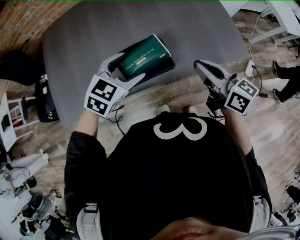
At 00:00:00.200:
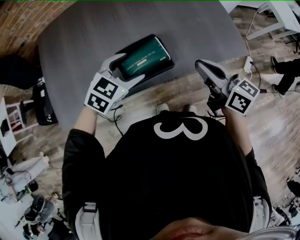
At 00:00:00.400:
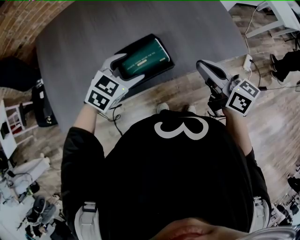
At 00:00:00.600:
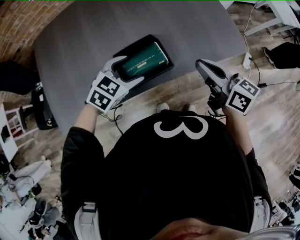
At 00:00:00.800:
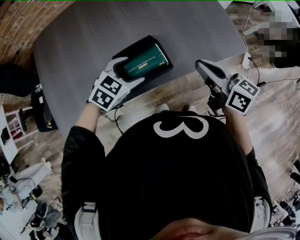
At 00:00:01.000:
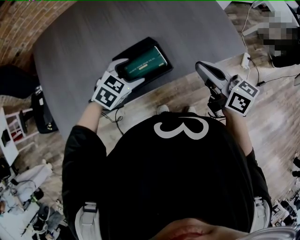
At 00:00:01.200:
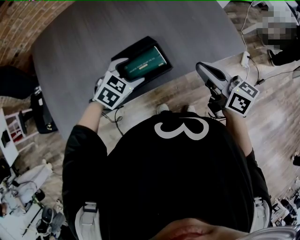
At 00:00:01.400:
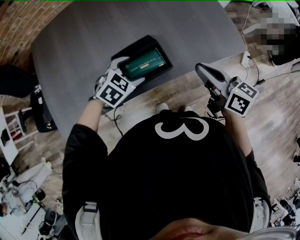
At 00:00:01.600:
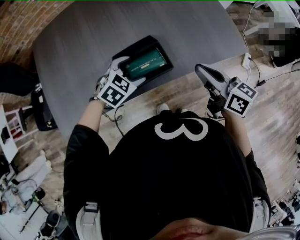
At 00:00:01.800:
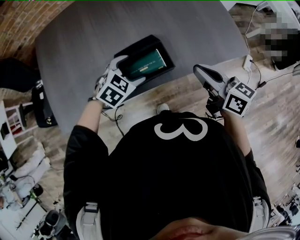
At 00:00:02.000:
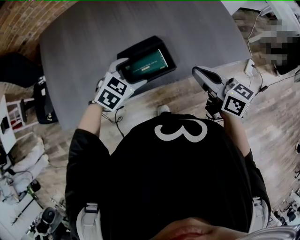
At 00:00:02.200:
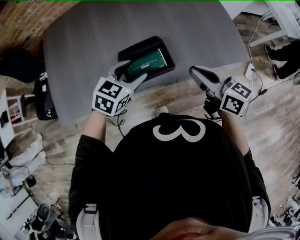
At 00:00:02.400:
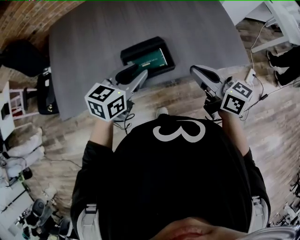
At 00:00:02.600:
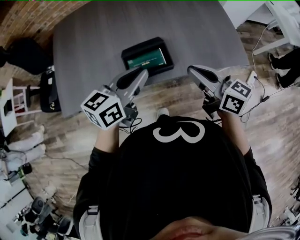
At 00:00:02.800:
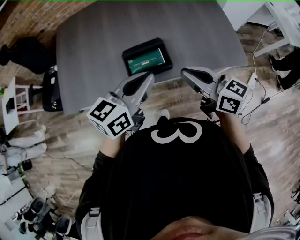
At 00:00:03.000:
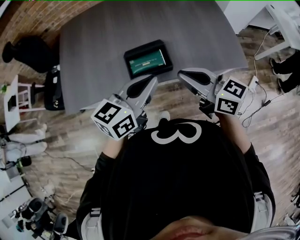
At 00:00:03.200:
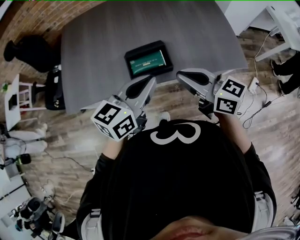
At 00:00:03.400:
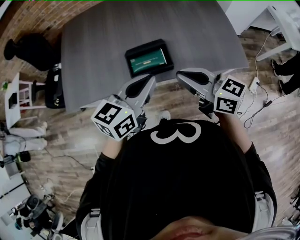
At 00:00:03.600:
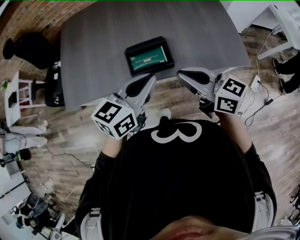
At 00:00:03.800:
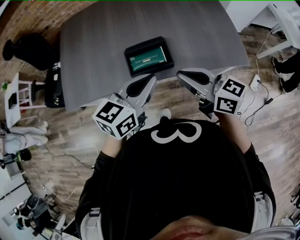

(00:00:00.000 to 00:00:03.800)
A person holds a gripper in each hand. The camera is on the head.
00:00:00.000 - 00:00:01.200: The left gripper heads downward, covering roughly 10 cm.
00:00:01.200 - 00:00:02.600: The left gripper moves upward and backward, roughly 20 cm, tilts its fingers approximately 40 degrees upward, and closes up, while the right gripper ends up roughly 5 cm from where it was.
00:00:02.600 - 00:00:03.800: The right gripper shifts by approximately 5 cm, while the left gripper shifts by approximately 5 cm.

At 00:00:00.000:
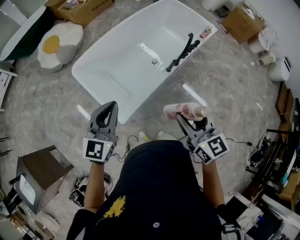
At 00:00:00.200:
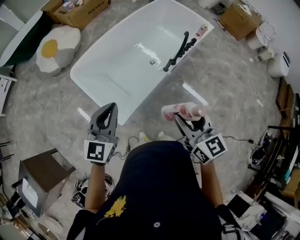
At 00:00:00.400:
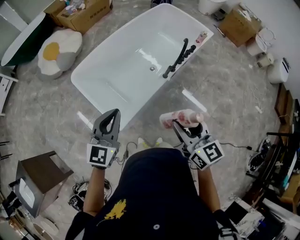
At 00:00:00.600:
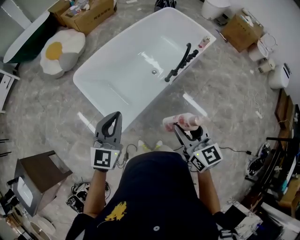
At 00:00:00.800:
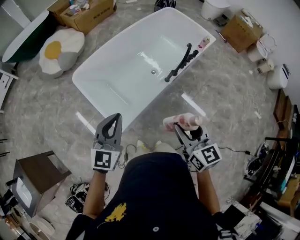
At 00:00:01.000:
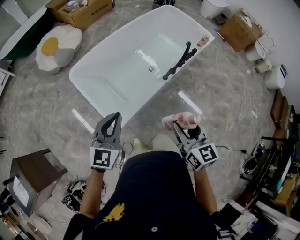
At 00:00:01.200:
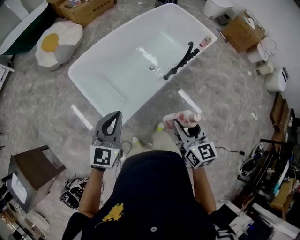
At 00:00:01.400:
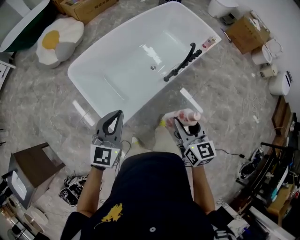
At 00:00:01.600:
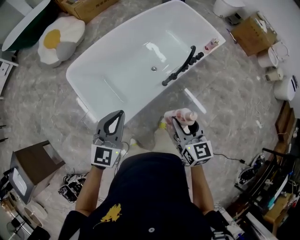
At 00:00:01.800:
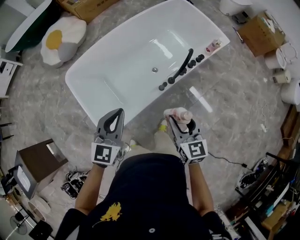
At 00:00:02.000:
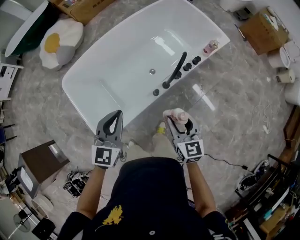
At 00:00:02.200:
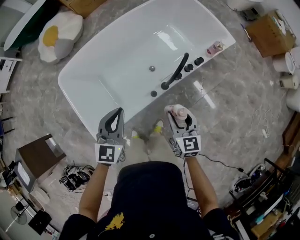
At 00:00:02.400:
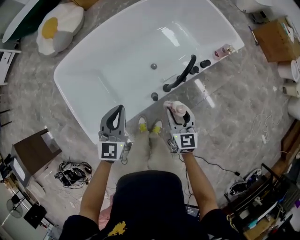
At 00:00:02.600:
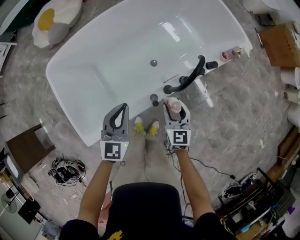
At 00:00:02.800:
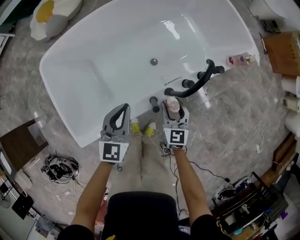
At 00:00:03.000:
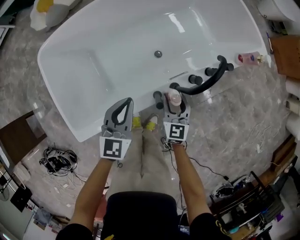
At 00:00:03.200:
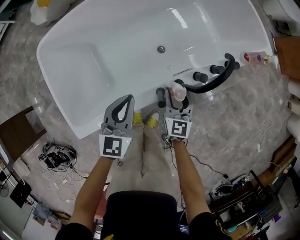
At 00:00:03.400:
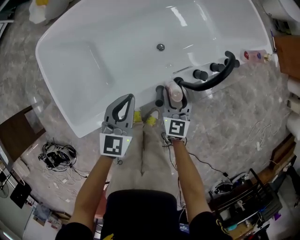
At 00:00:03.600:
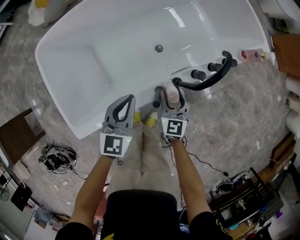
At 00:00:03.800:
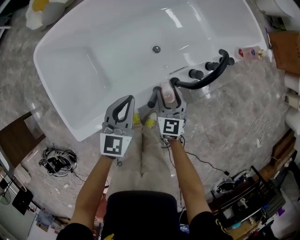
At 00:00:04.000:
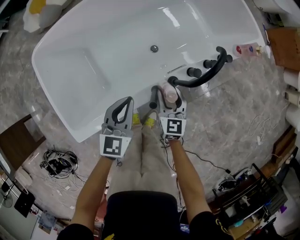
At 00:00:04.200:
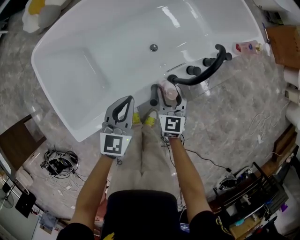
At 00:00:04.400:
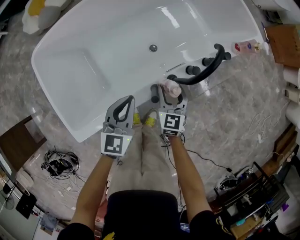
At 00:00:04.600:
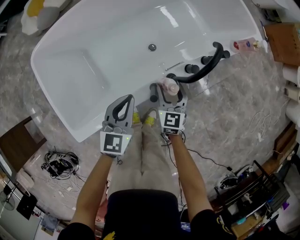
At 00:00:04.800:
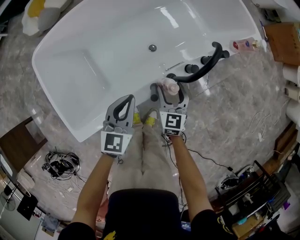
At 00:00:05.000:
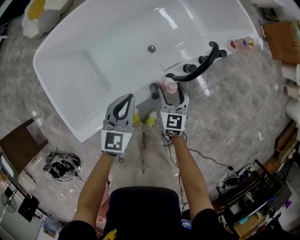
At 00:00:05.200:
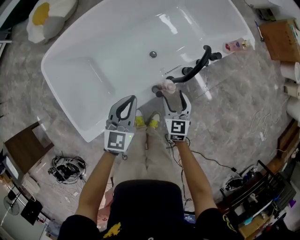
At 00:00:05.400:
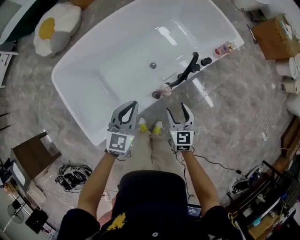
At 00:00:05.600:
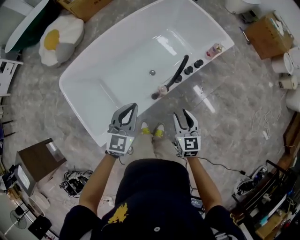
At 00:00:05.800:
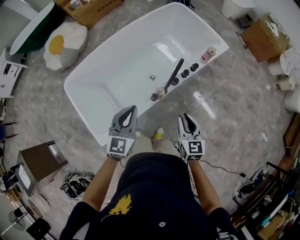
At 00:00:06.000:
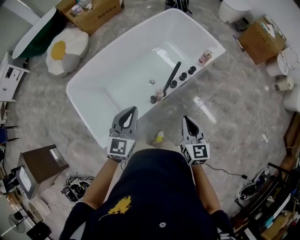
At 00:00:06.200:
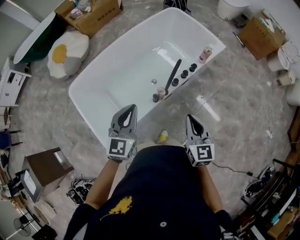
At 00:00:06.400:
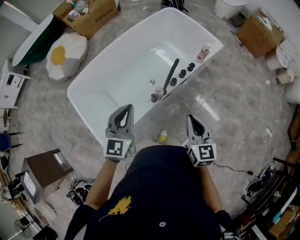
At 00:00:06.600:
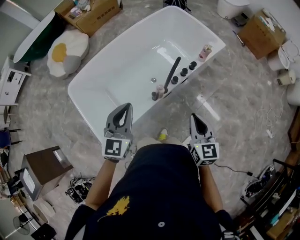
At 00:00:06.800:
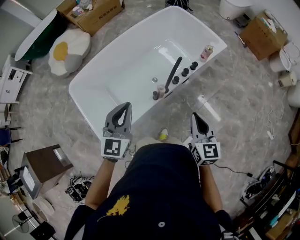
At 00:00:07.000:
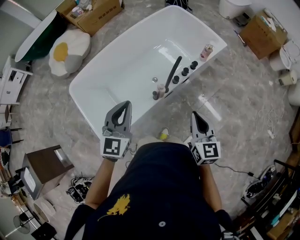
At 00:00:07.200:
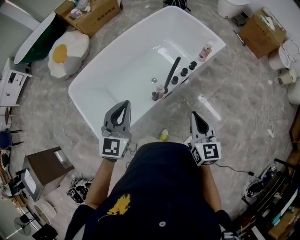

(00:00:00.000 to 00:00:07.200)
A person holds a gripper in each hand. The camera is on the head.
00:00:00.000 - 00:00:01.400: The left gripper shifts about 5 cm to the right. The right gripper heads forward, downward and to the right, covering some 10 cm.
00:00:01.400 - 00:00:02.800: The right gripper shifts approximately 50 cm downward, forward and to the right, while the left gripper heads forward, downward and to the right, covering approximately 50 cm, and swivels roughly 20 degrees.
00:00:02.800 - 00:00:04.400: The left gripper moves downward, roughly 5 cm. The right gripper changes place by roughly 5 cm.
00:00:04.400 - 00:00:05.800: The right gripper travels upward and backward by approximately 35 cm, and closes. Meanwhile the left gripper heads upward, covering about 30 cm.
00:00:05.800 - 00:00:07.200: The grippers both shift upward by about 10 cm.

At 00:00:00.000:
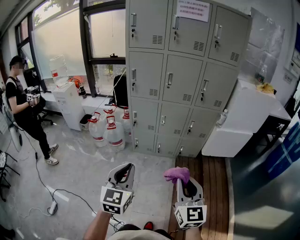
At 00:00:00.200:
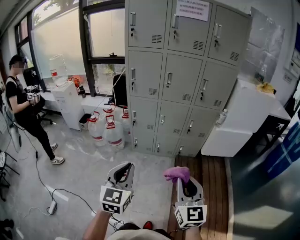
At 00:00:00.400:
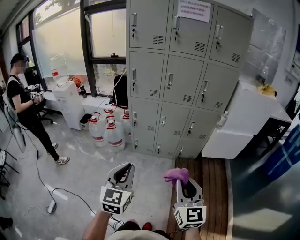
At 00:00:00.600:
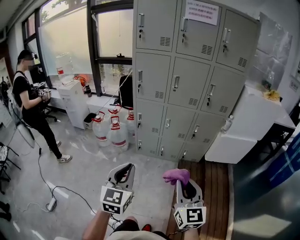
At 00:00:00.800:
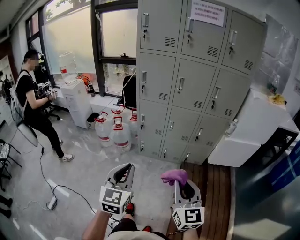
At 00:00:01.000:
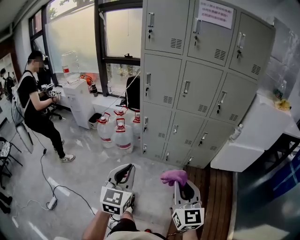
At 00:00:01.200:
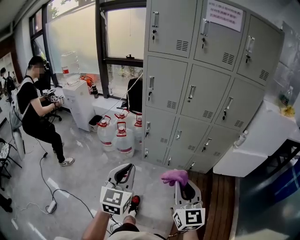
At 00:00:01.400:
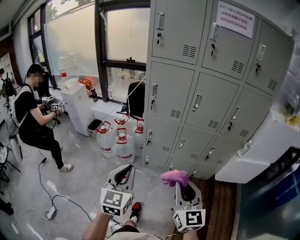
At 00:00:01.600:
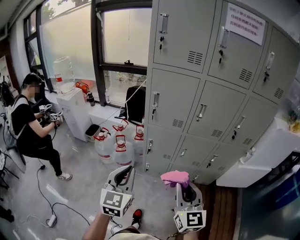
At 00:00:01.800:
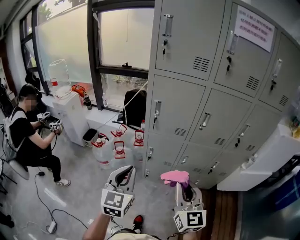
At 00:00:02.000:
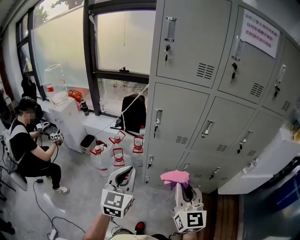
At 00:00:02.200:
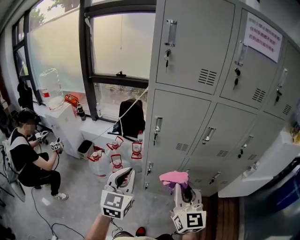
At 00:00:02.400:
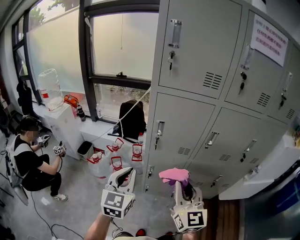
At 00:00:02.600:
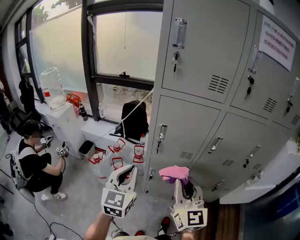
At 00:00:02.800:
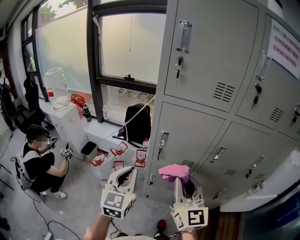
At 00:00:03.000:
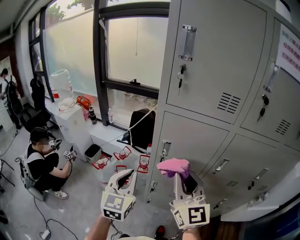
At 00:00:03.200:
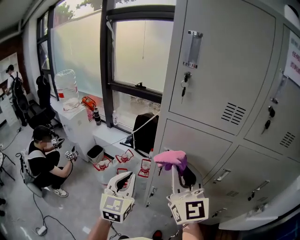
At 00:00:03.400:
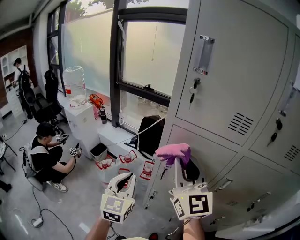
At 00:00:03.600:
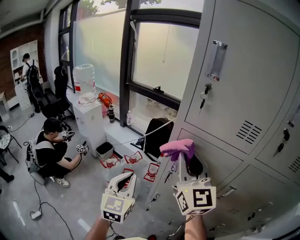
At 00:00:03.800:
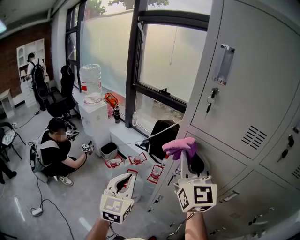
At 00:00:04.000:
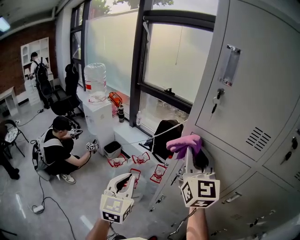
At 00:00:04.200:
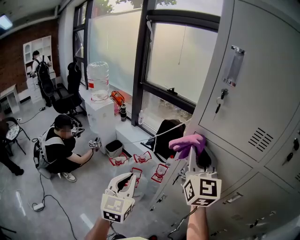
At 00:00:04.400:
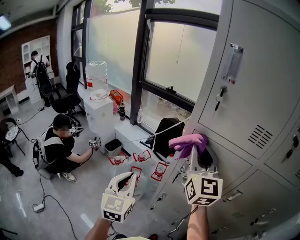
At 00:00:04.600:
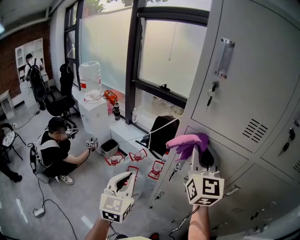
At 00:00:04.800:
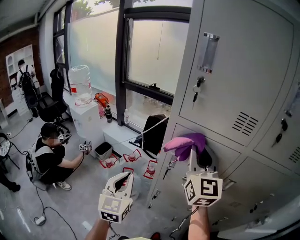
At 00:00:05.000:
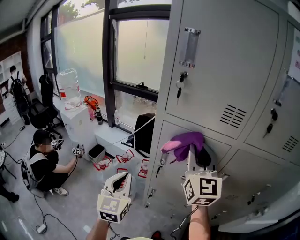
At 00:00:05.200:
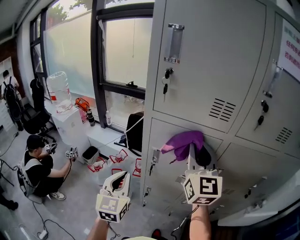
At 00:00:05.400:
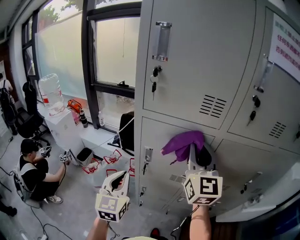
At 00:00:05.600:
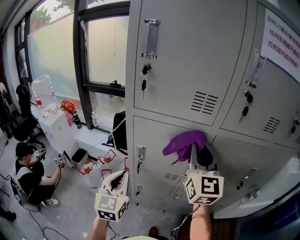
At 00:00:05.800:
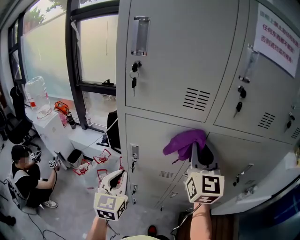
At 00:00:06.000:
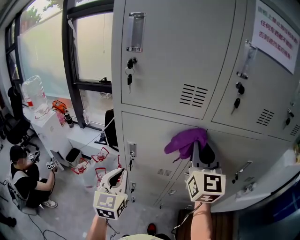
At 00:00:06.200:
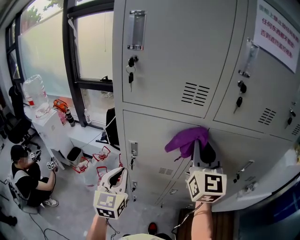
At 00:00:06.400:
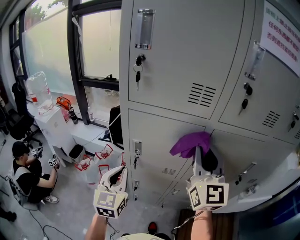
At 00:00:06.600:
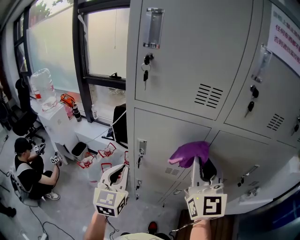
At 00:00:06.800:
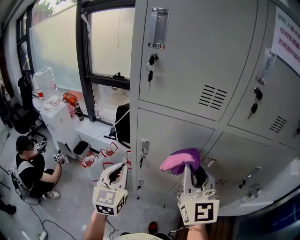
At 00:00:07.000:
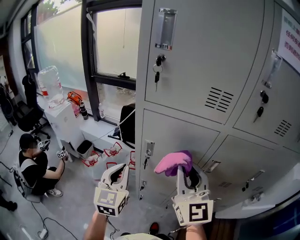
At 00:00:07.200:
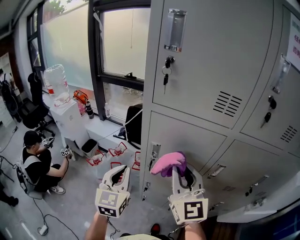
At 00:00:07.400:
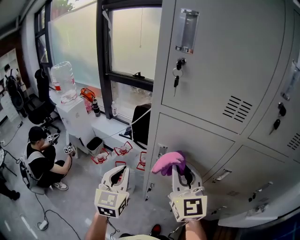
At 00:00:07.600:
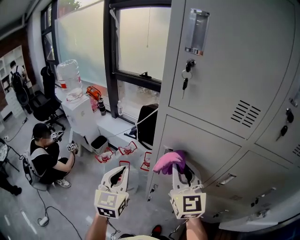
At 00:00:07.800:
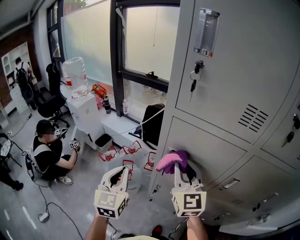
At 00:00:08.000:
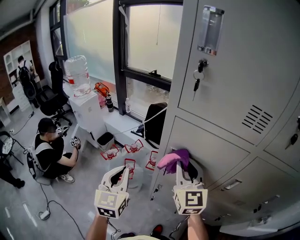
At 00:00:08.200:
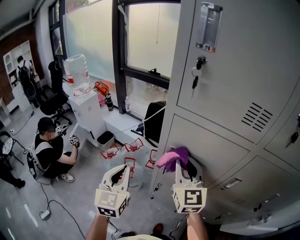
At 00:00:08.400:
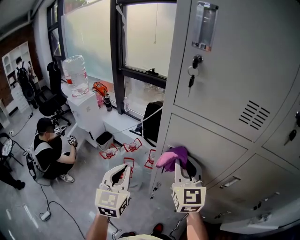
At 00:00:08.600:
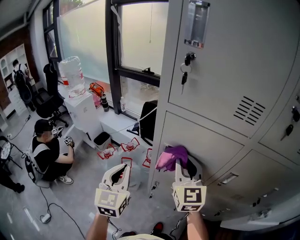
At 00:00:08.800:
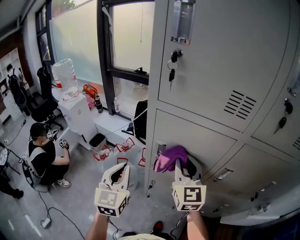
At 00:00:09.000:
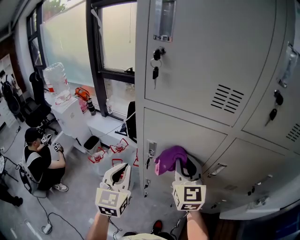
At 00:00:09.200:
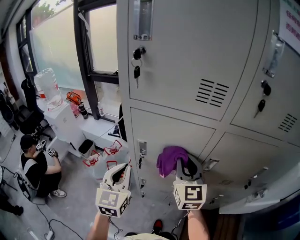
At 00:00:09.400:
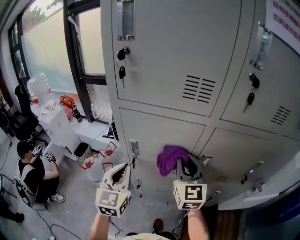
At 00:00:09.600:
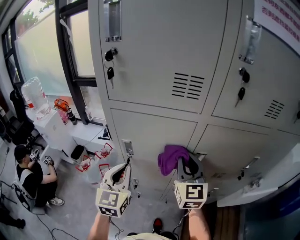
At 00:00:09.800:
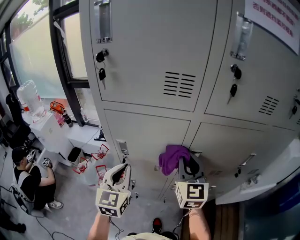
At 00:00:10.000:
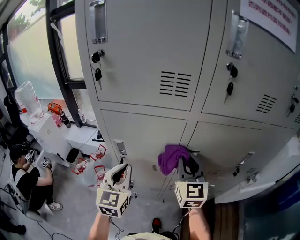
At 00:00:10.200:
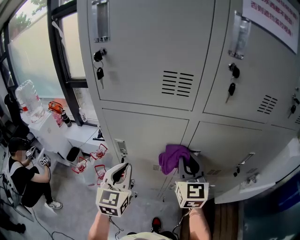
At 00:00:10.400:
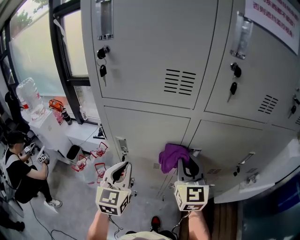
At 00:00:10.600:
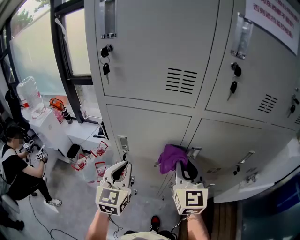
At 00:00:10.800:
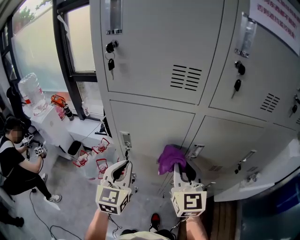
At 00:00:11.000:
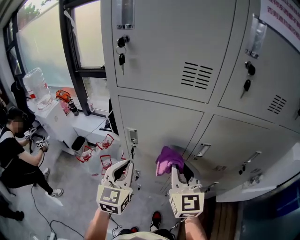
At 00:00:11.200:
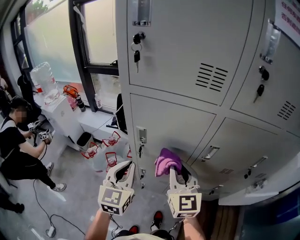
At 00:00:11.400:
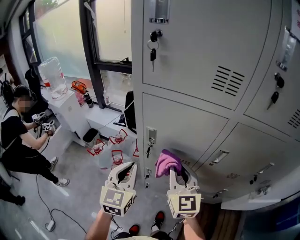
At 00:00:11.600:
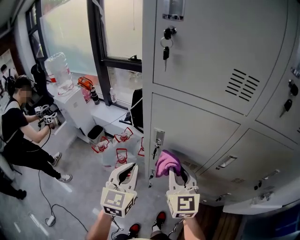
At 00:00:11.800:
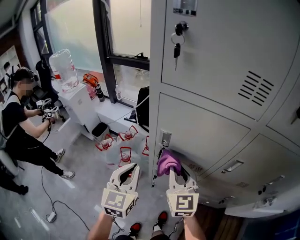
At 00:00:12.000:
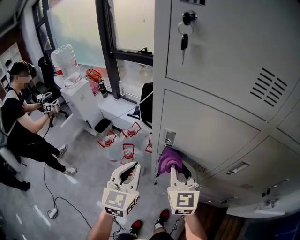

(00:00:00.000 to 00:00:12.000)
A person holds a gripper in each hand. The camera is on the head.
00:00:00.000 - 00:00:01.600: Both grippers travel together forward and to the left, approximately 30 cm.
00:00:01.600 - 00:00:03.000: Both grippers move forward, about 30 cm.
00:00:03.000 - 00:00:04.400: The right gripper heads forward and upward, covering some 15 cm; the left gripper is displaced to the left by some 5 cm.
00:00:04.400 - 00:00:06.000: The right gripper shifts by approximately 25 cm, and changes its angle by some 30 degrees, while the left gripper moves about 15 cm, and swivels some 20 degrees.
00:00:06.000 - 00:00:07.600: The left gripper heads to the left, covering some 10 cm. Meanwhile the right gripper goes roughly 20 cm to the left and downward, and turns by about 30 degrees.
00:00:07.600 - 00:00:09.000: The grippers both shift to the right by some 5 cm.
00:00:09.000 - 00:00:10.400: Both grippers travel together to the right, some 10 cm.
00:00:10.400 - 00:00:12.000: The left gripper heads to the left and downward, covering some 15 cm. Meanwhile the right gripper heads to the left and downward, covering about 20 cm, and turns by approximately 20 degrees.
